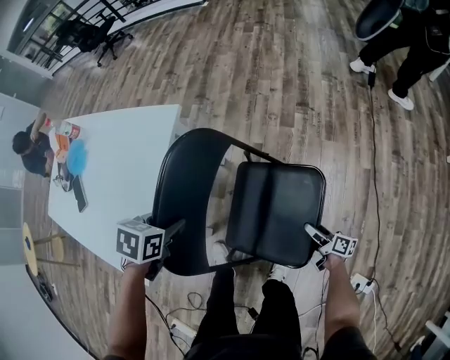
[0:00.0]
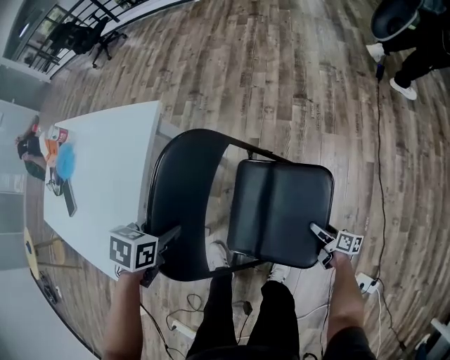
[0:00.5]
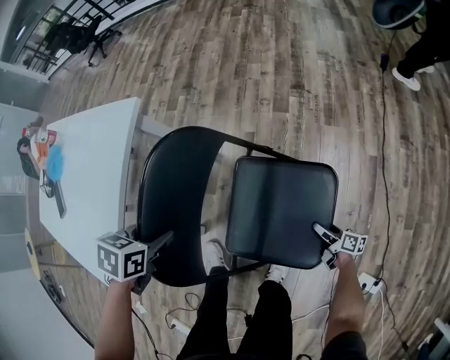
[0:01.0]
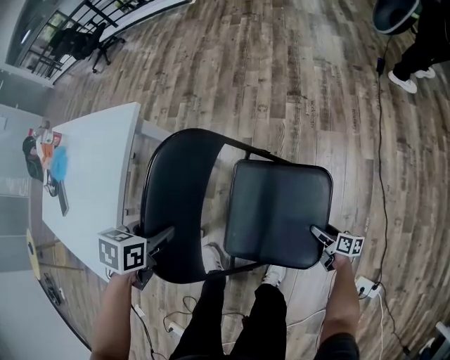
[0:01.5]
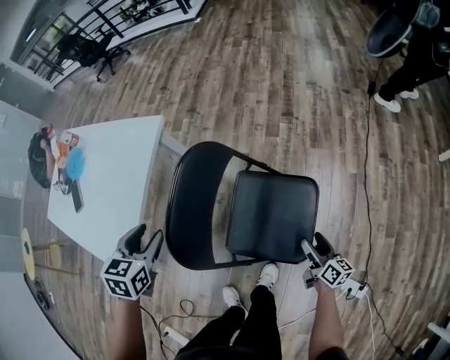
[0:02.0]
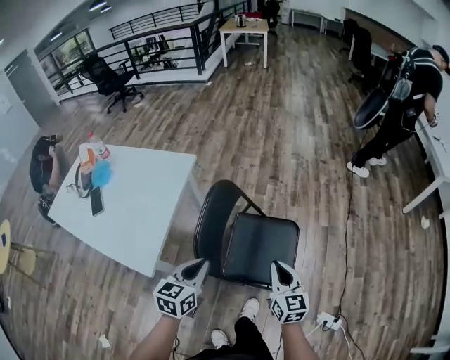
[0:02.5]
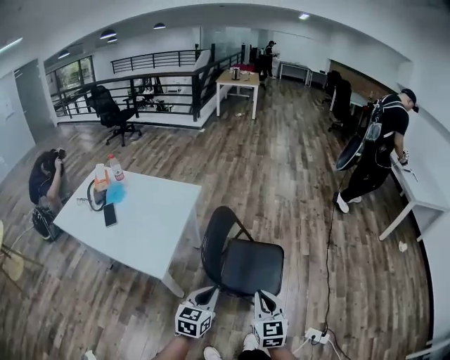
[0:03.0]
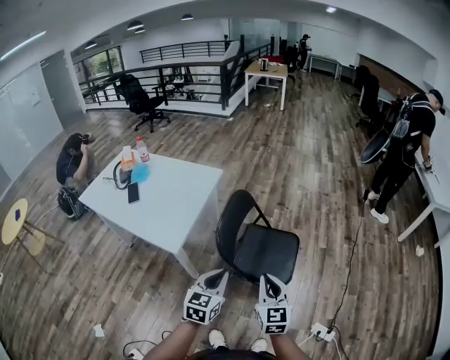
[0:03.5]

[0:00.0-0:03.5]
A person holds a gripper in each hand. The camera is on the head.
0:00.0 to 0:02.0: The right gripper is displaced upward, to the right and backward by approximately 15 cm, and rotates roughly 30 degrees, while the left gripper travels upward by about 10 cm, and rotates approximately 30 degrees.
0:02.0 to 0:03.5: The right gripper shifts some 60 cm upward, backward and to the left, rotates around the line of its fingers by approximately 50 degrees, counterclockwise from behind, and closes up, while the left gripper heads backward and upward, covering some 40 cm, swivels approximately 30 degrees, and closes its fingers.

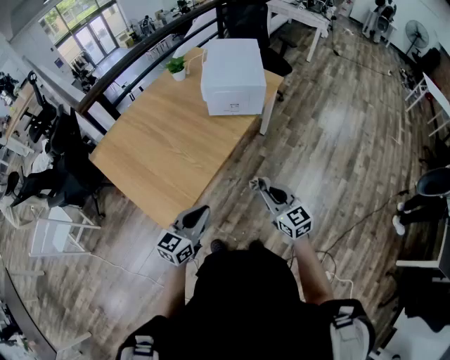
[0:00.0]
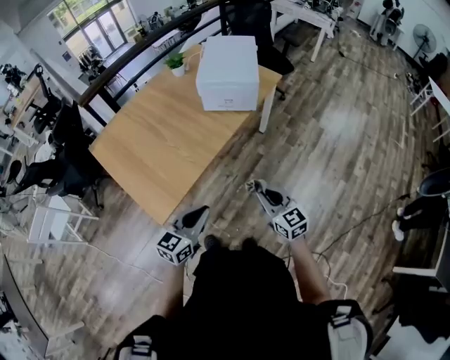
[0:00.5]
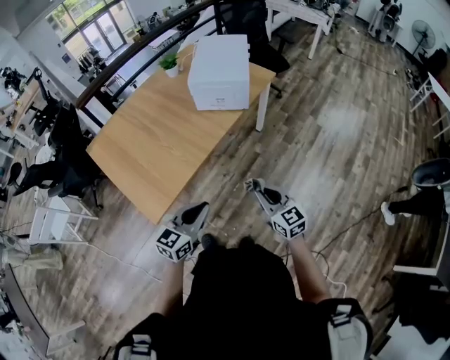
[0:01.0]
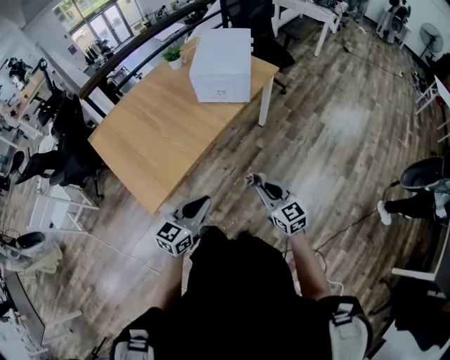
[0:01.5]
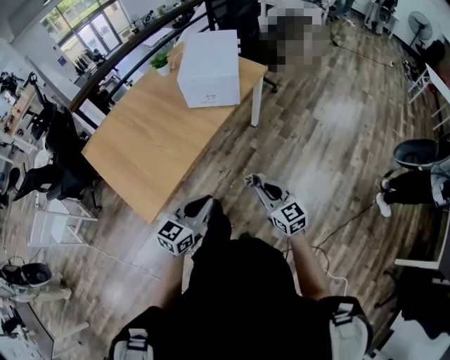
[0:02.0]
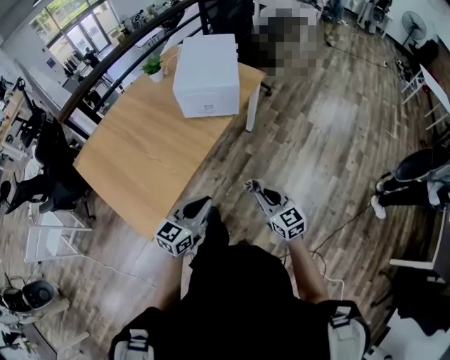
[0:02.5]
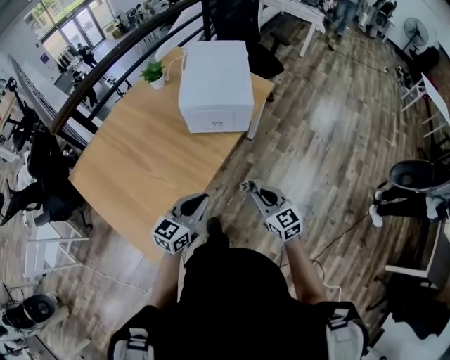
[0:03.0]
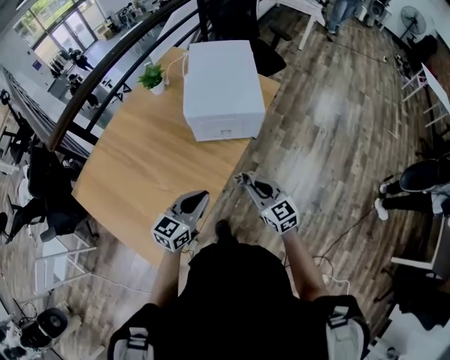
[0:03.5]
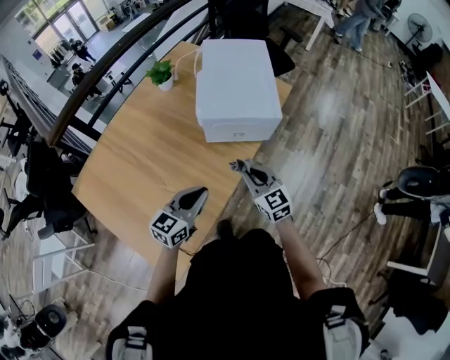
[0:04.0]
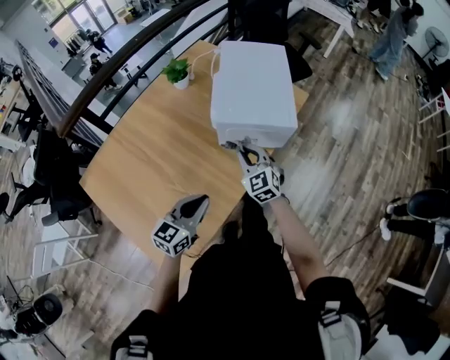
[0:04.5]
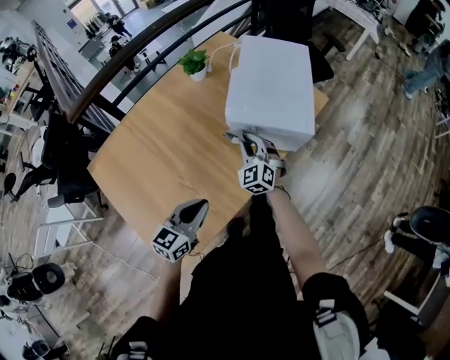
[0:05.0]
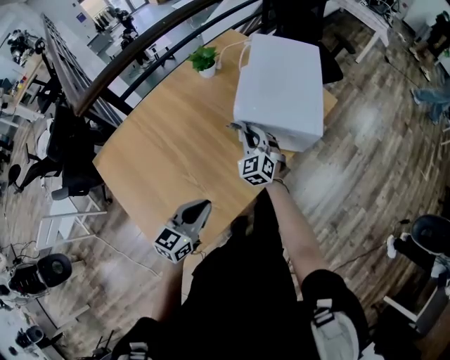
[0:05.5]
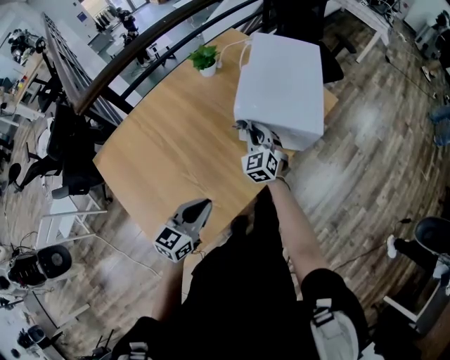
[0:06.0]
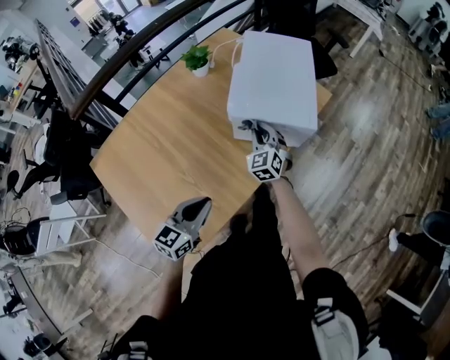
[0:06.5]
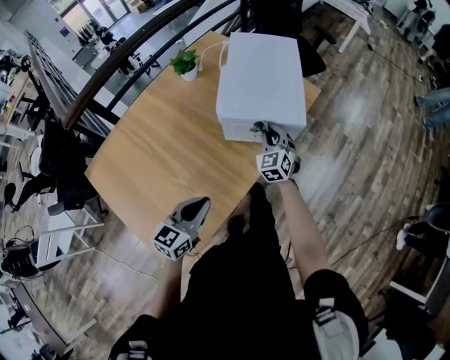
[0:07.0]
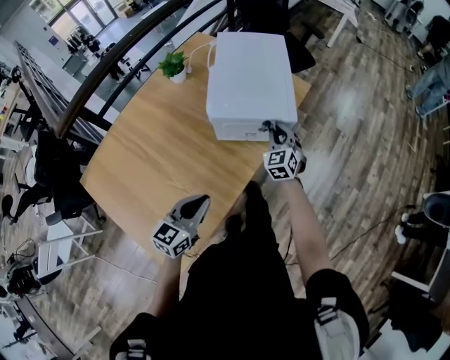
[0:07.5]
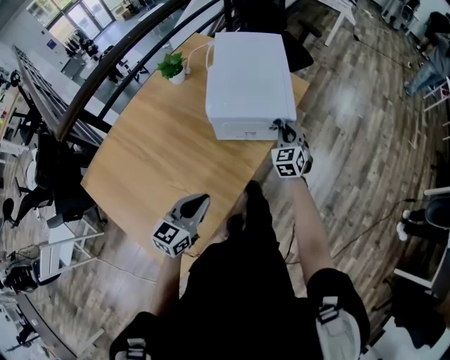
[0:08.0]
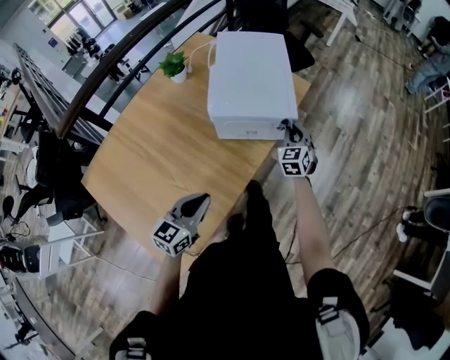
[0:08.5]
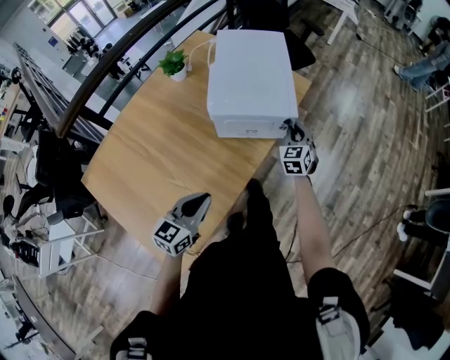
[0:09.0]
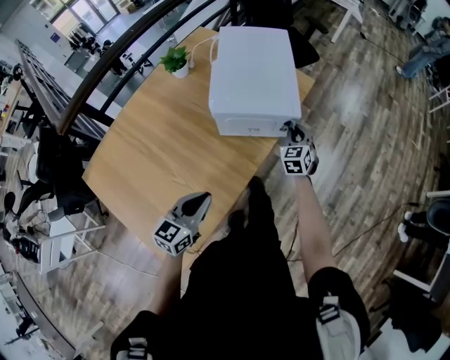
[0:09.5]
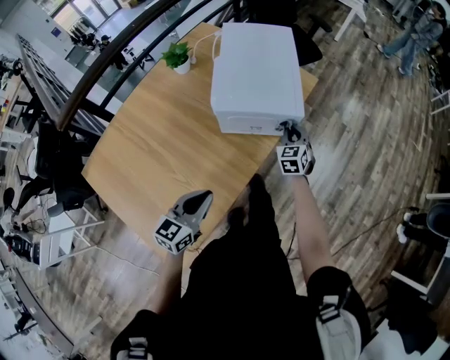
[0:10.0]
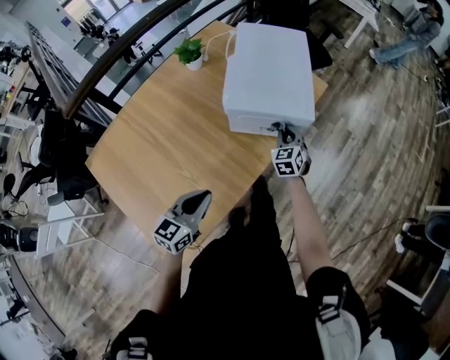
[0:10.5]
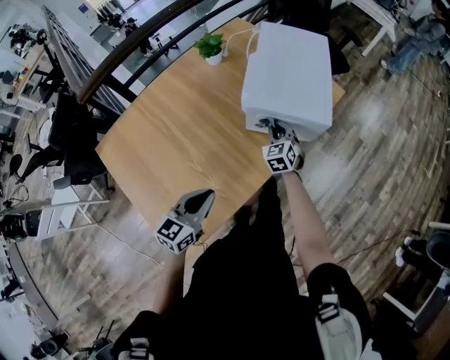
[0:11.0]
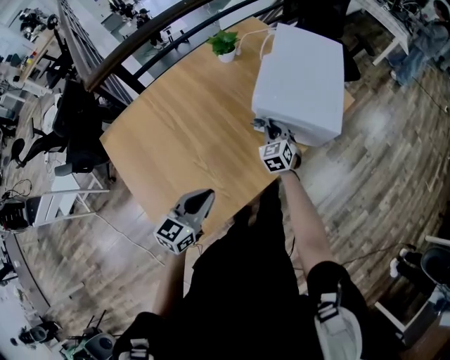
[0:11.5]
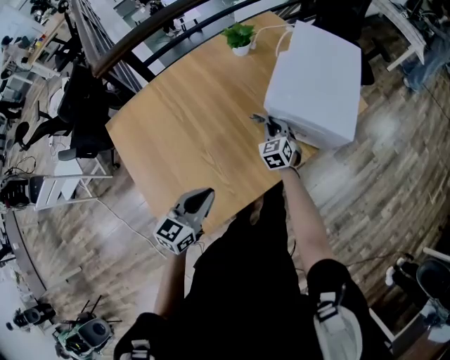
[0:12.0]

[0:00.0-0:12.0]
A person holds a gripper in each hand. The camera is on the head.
0:00.0 to 0:02.0: Both grippers move to the right, roughly 15 cm.
0:02.0 to 0:04.0: The grippers both shift forward and to the left by approximately 40 cm.
0:04.0 to 0:06.0: The right gripper shifts about 20 cm forward and to the left, and rotates some 30 degrees. The left gripper shifts by approximately 5 cm.
0:06.0 to 0:08.0: The right gripper is displaced to the right by roughly 20 cm, and swivels about 20 degrees.
0:08.0 to 0:10.0: The right gripper goes roughly 5 cm downward.
0:10.0 to 0:12.0: The left gripper shifts roughly 10 cm to the left. The right gripper goes about 25 cm to the left, and changes its angle by about 30 degrees.

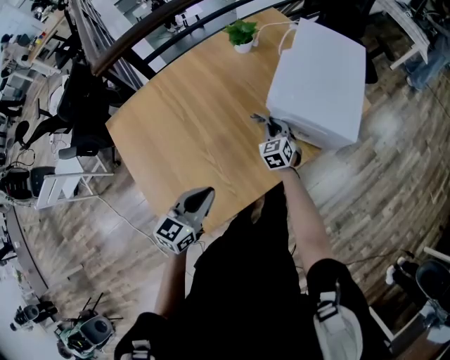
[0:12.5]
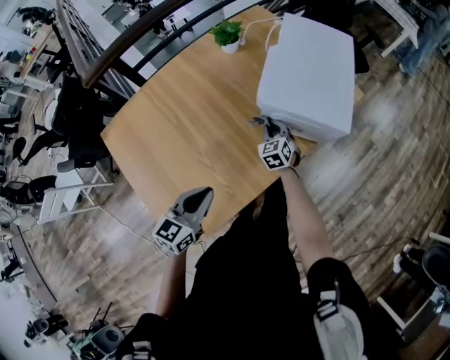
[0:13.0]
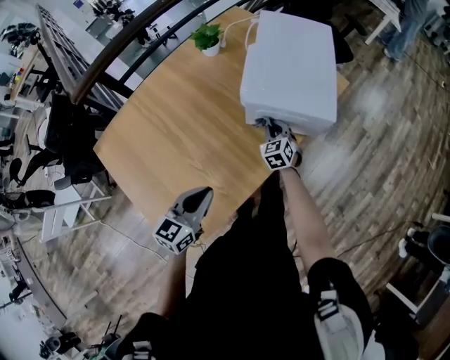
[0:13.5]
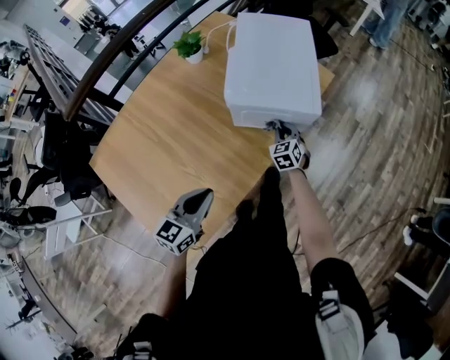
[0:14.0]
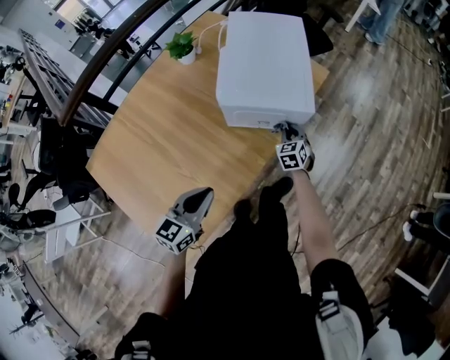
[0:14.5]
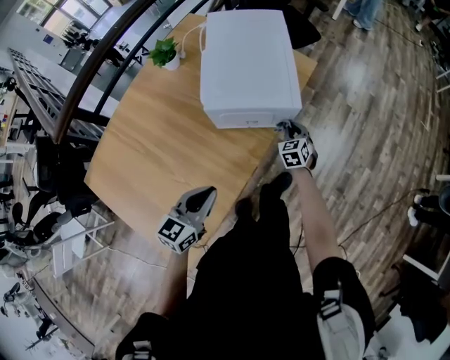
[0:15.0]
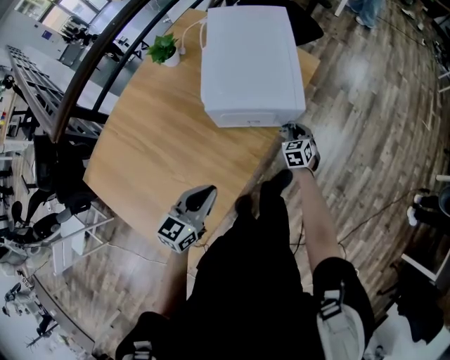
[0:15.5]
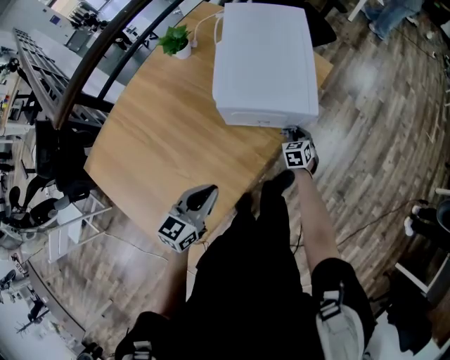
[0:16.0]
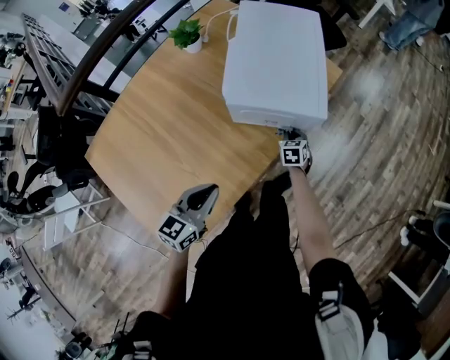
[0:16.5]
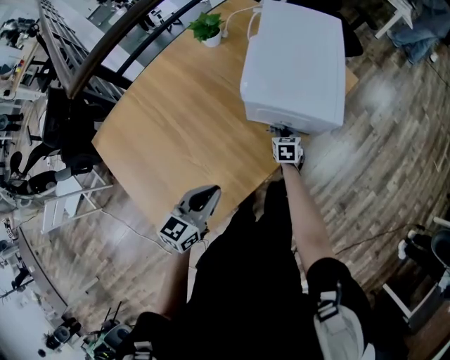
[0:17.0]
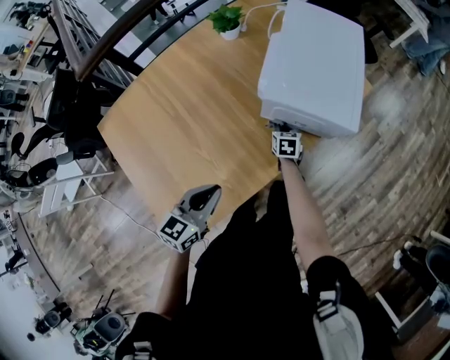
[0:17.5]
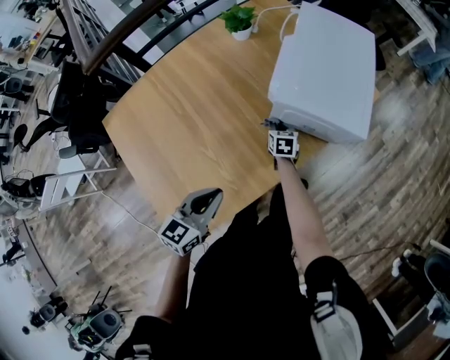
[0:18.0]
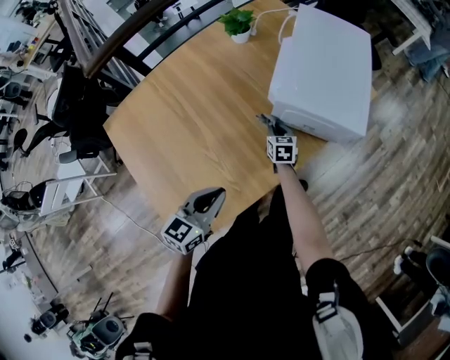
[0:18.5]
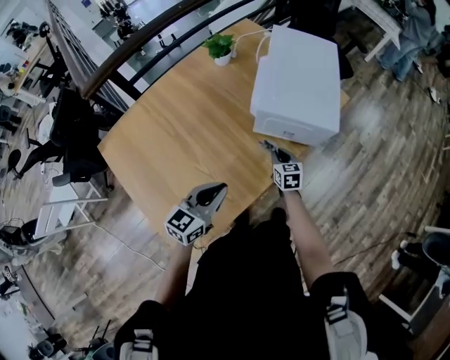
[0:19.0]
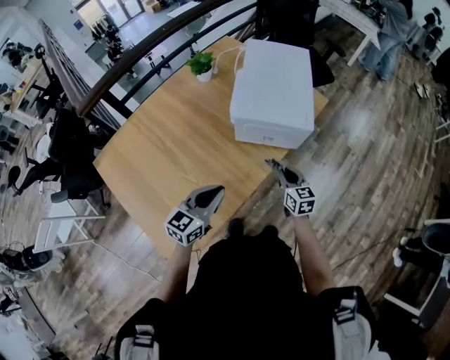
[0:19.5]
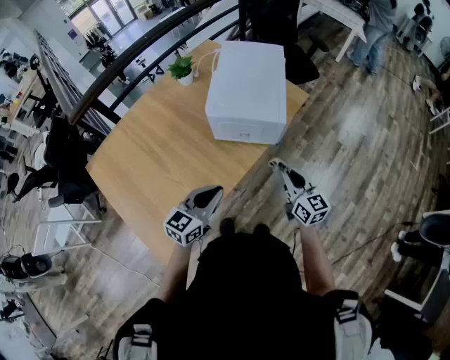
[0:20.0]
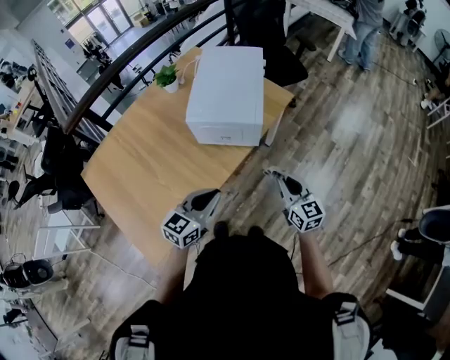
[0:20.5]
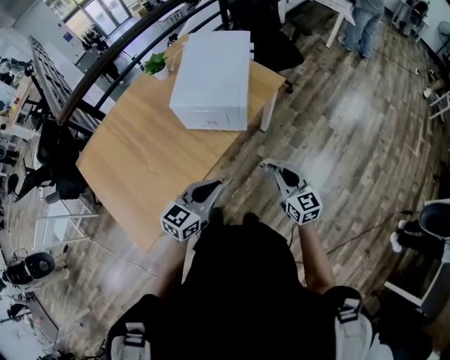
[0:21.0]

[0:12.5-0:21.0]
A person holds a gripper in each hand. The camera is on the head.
0:12.5 to 0:14.5: The left gripper travels to the right by about 10 cm. Meanwhile the right gripper goes about 25 cm to the right, and changes its angle by about 20 degrees.
0:14.5 to 0:16.5: The right gripper moves downward, about 10 cm.
0:16.5 to 0:19.0: The right gripper goes about 20 cm to the left, upward and backward, and swivels approximately 20 degrees; the left gripper goes approximately 5 cm to the left.
0:19.0 to 0:21.0: The right gripper heads to the right and upward, covering some 35 cm, and rotates some 20 degrees. Meanwhile the left gripper moves to the right, approximately 30 cm.

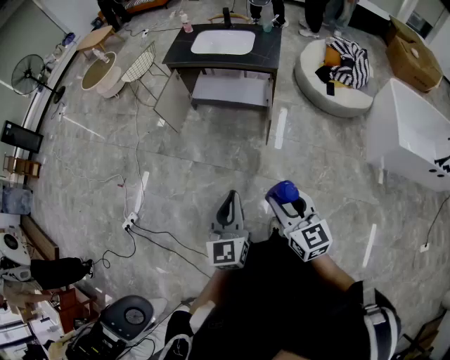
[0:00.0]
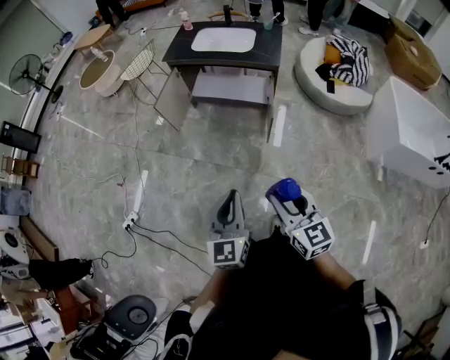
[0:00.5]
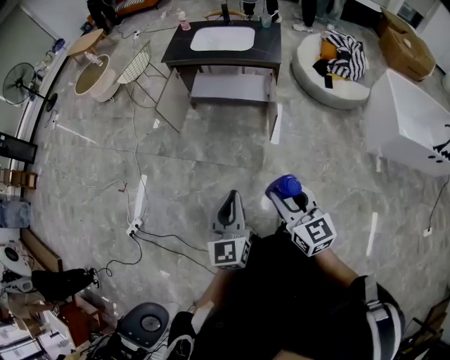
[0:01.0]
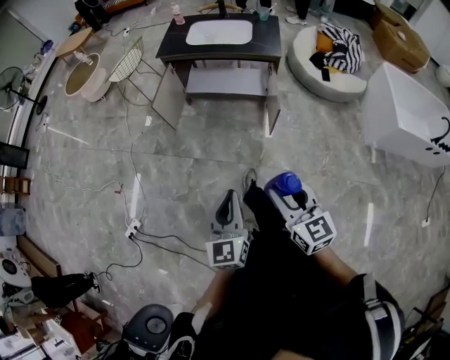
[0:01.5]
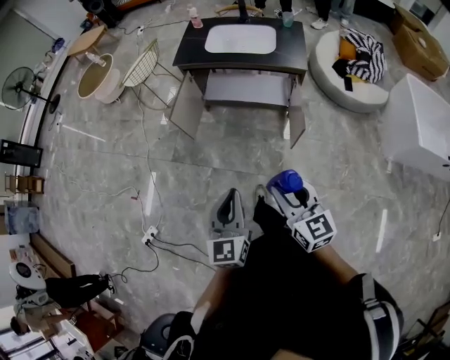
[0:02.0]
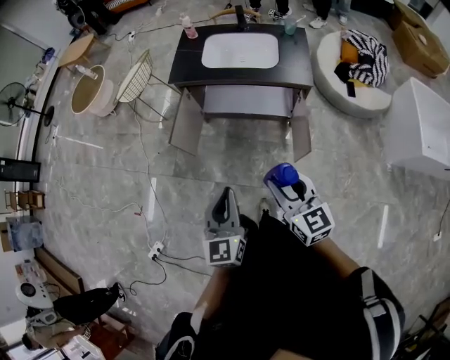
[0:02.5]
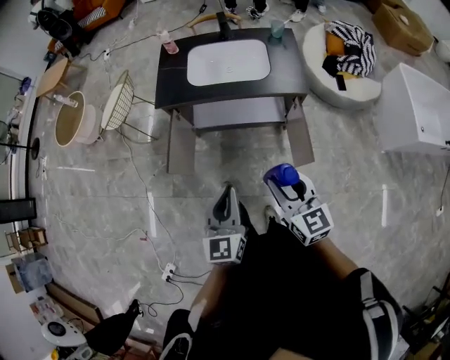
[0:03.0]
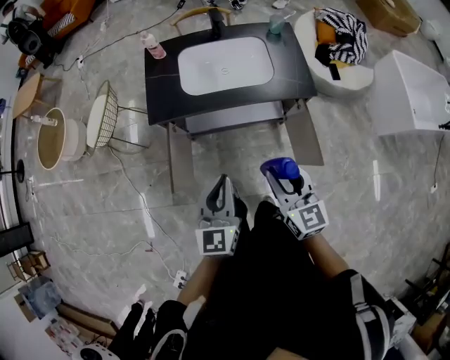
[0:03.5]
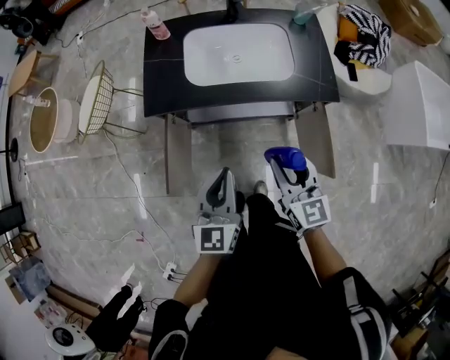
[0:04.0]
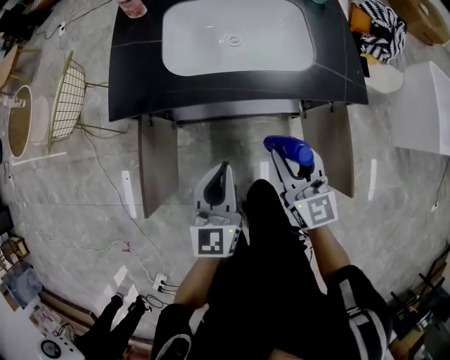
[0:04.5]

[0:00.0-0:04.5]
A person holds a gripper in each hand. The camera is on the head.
0:00.0 to 0:02.0: Both grippers travel together forward and to the left, approximately 25 cm.
0:02.0 to 0:04.5: The two grippers travel together, forward, some 60 cm. The grippers both shift downward by approximately 30 cm.
